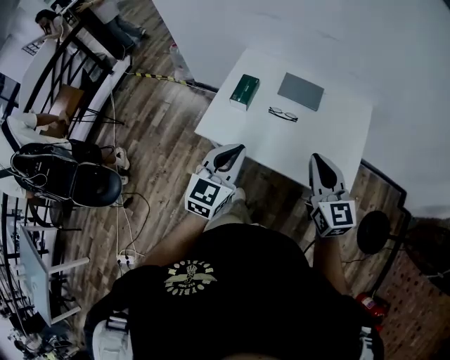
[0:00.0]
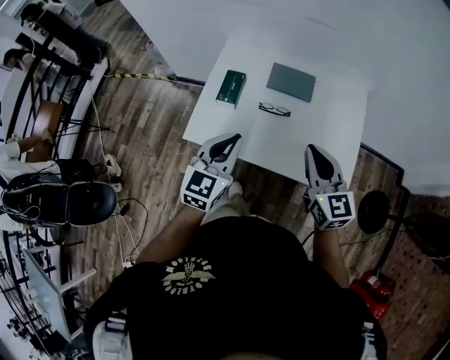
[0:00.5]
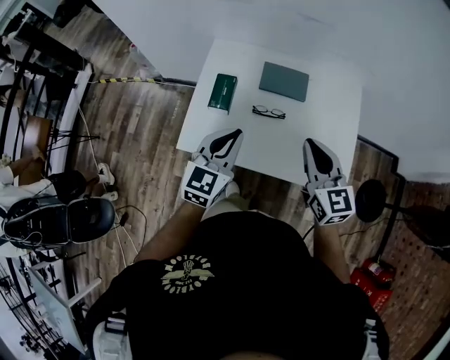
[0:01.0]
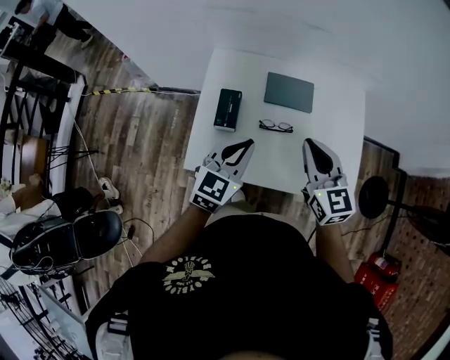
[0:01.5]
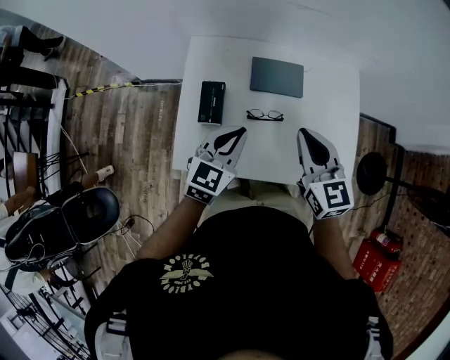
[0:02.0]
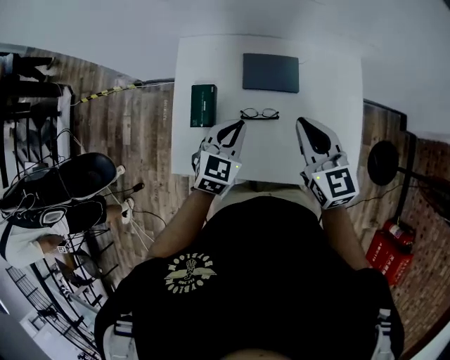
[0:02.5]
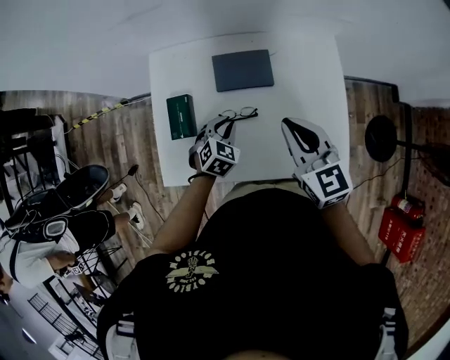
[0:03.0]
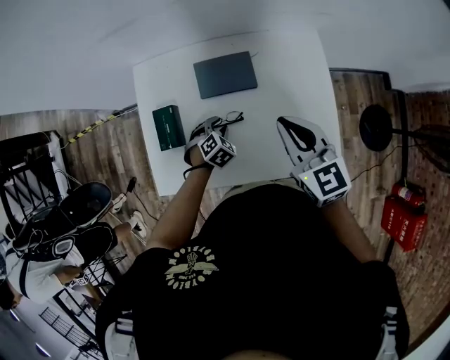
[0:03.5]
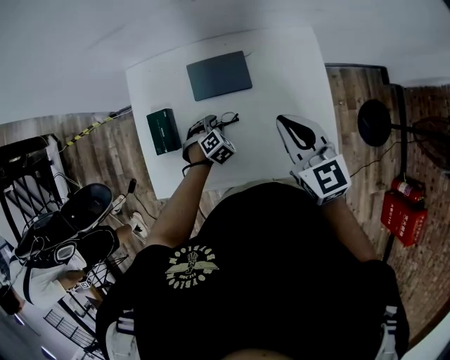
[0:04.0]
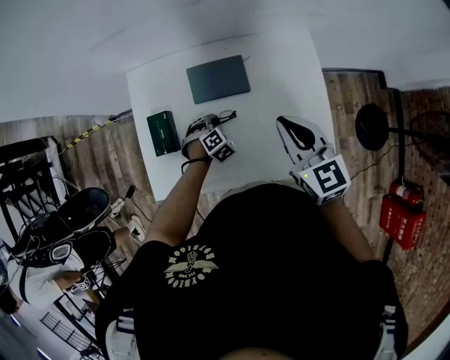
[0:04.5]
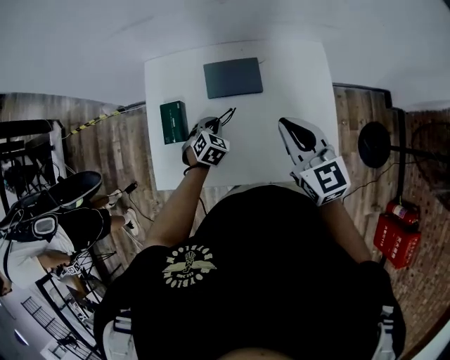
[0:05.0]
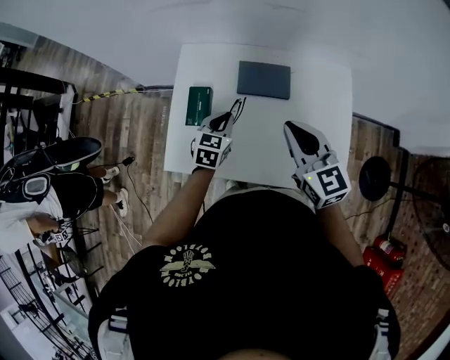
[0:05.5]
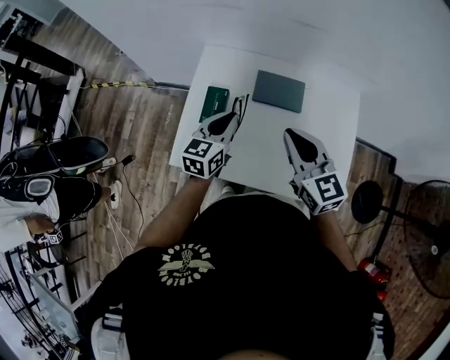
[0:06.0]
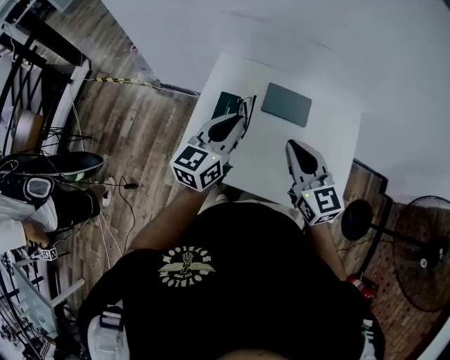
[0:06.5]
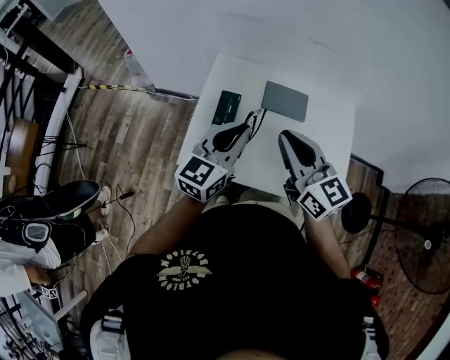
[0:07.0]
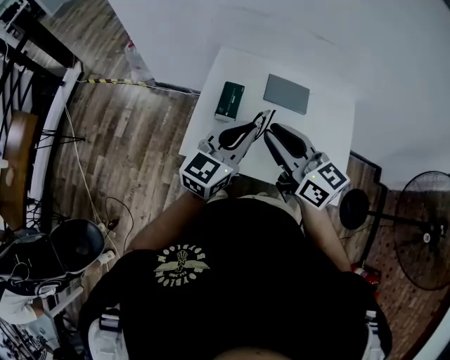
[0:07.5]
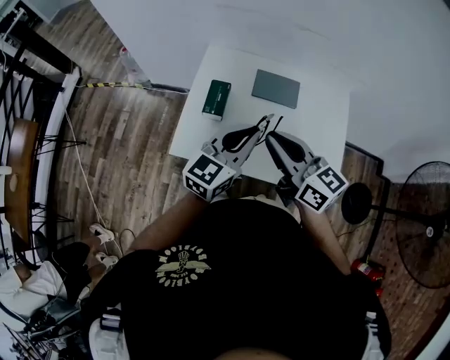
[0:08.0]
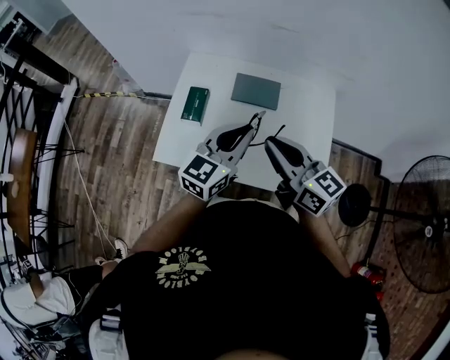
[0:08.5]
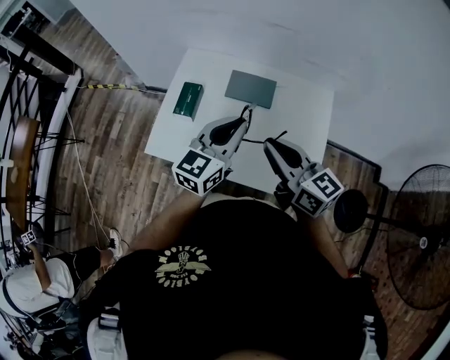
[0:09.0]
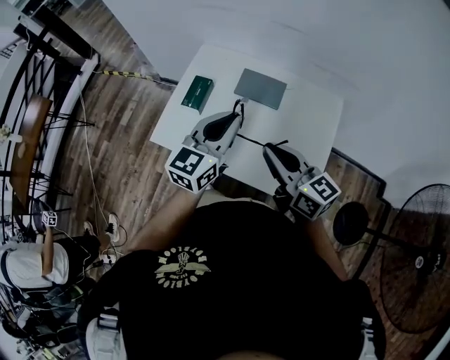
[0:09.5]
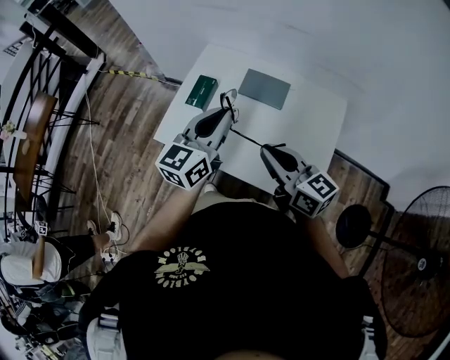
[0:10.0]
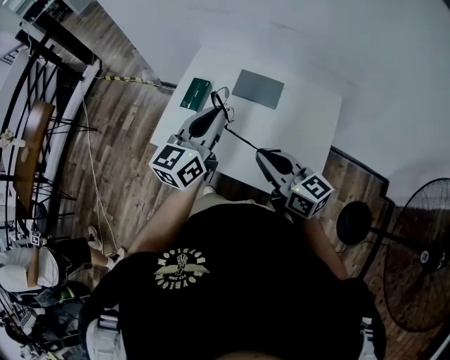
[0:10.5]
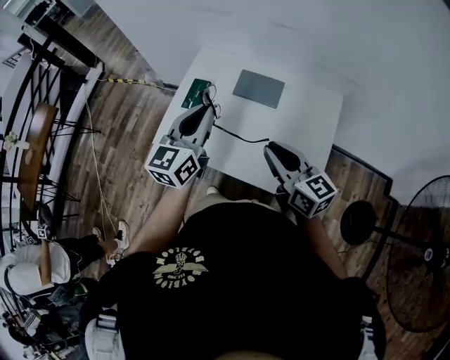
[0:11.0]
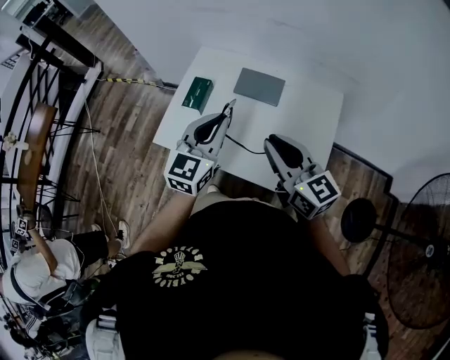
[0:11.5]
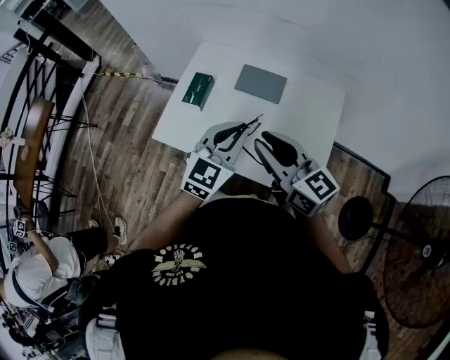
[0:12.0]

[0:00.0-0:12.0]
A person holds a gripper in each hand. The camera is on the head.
0:00.0 to 0:02.0: The two grippers go about 25 cm forward. The left gripper rotates roughly 20 degrees.
0:02.0 to 0:04.0: The right gripper moves to the right and forward, approximately 15 cm. Meanwhile the left gripper goes approximately 30 cm downward, tilts its fingers some 50 degrees downward, and opens its fingers.
0:04.0 to 0:06.0: The left gripper shifts some 30 cm upward and to the left, angles its fingers upward, by approximately 50 degrees, and closes. The right gripper moves to the left, some 15 cm.
0:06.0 to 0:08.0: The left gripper goes approximately 20 cm backward and upward. The right gripper is displaced backward, to the left and upward by some 15 cm, and changes its angle by about 20 degrees.
0:08.0 to 0:10.0: The left gripper is displaced to the right by some 10 cm, and turns by approximately 20 degrees. Meanwhile the right gripper heads to the right, covering about 15 cm.
0:10.0 to 0:12.0: The left gripper changes place by roughly 10 cm, and changes its angle by about 30 degrees.

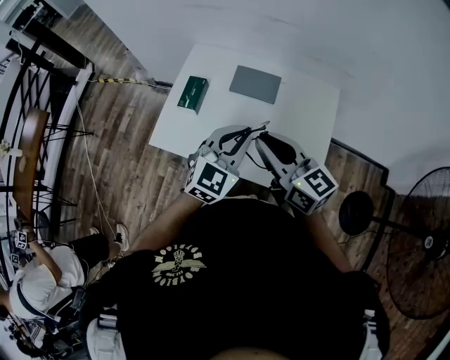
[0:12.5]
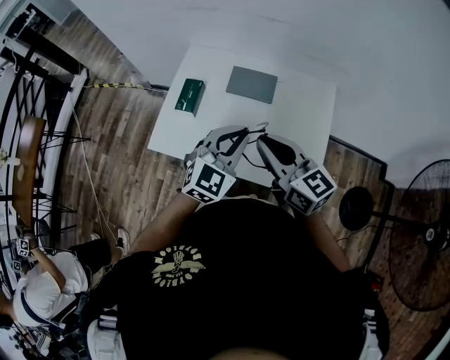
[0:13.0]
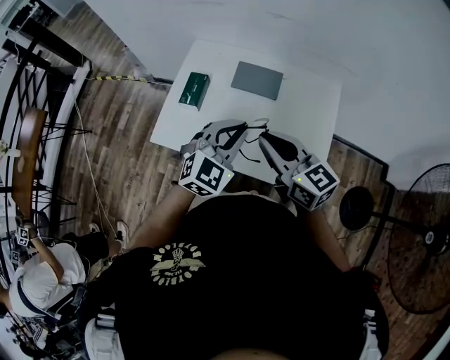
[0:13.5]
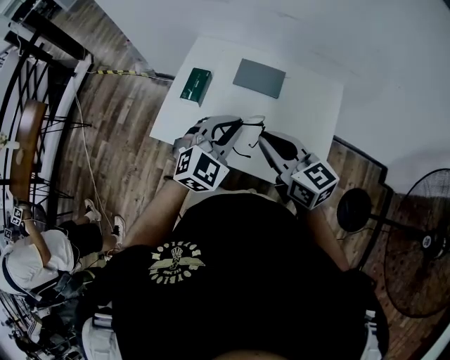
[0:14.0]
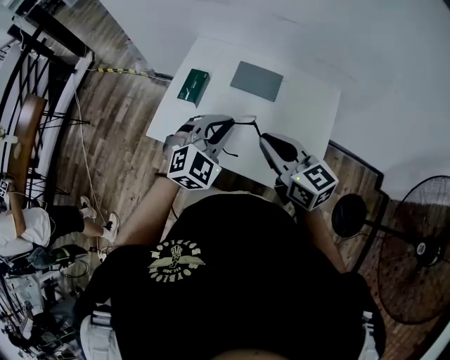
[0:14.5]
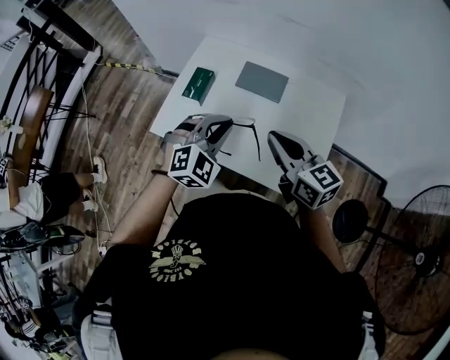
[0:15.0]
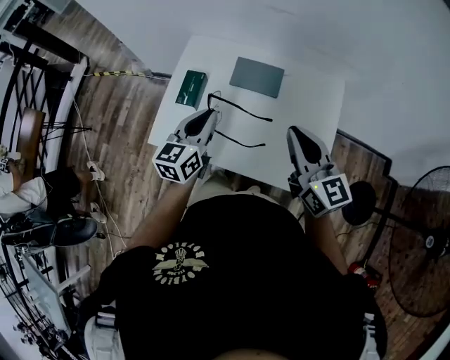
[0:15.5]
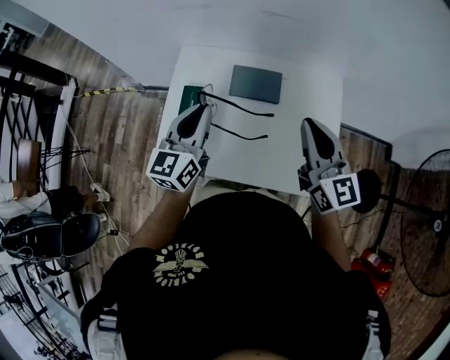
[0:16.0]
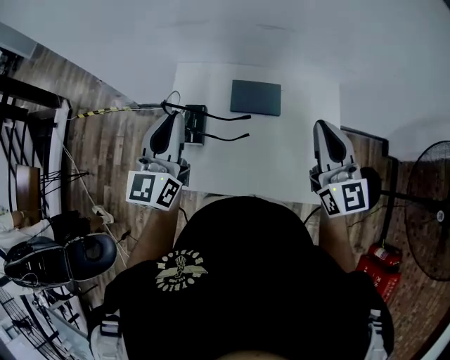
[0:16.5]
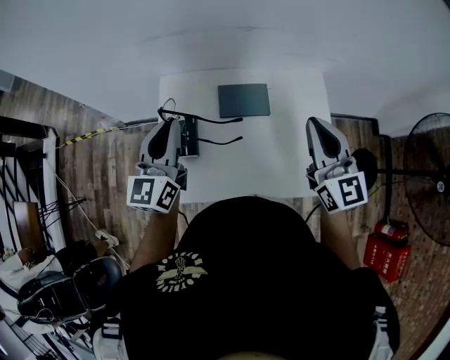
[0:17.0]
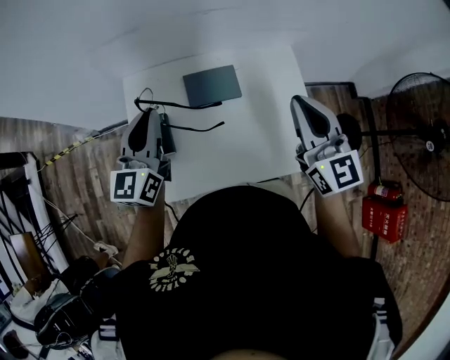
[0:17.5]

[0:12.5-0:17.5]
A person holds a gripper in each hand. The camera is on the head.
0:12.5 to 0:15.0: The left gripper changes place by roughly 5 cm, and turns by approximately 30 degrees.
0:15.0 to 0:17.5: The left gripper ends up roughly 30 cm from where it was, and twists about 50 degrees counterclockwise, seen from behind, while the right gripper moves roughly 20 cm, and rotates some 50 degrees.

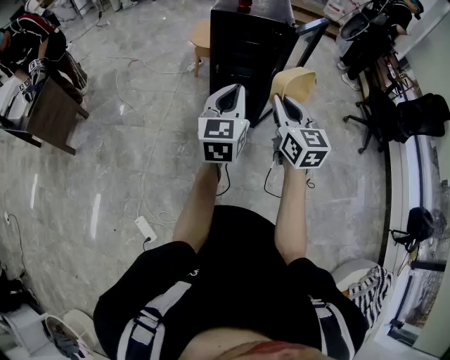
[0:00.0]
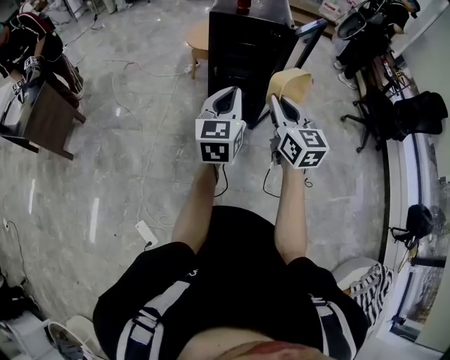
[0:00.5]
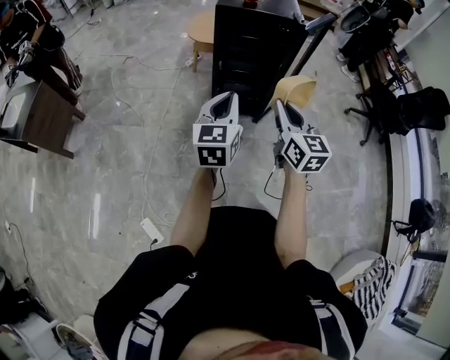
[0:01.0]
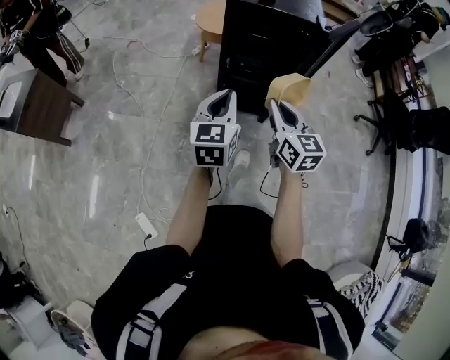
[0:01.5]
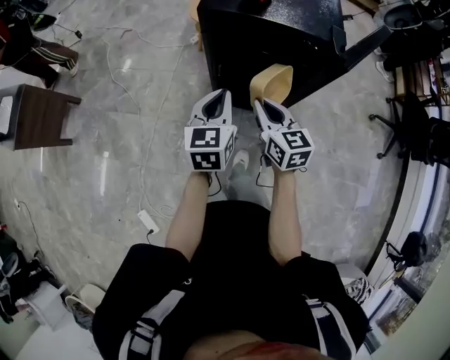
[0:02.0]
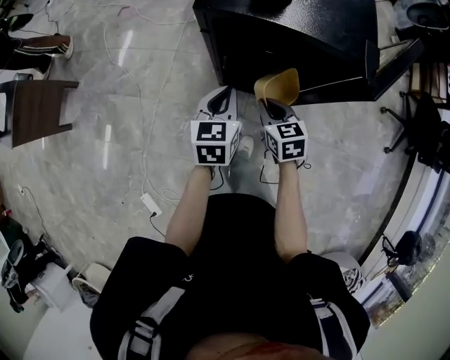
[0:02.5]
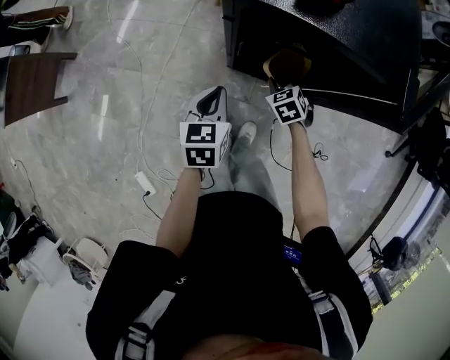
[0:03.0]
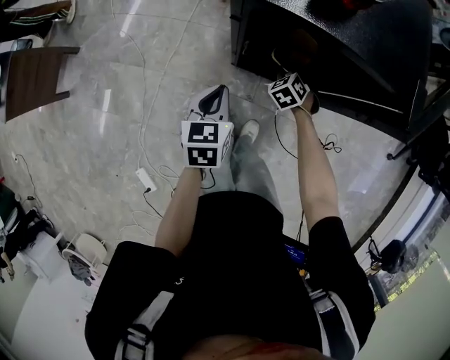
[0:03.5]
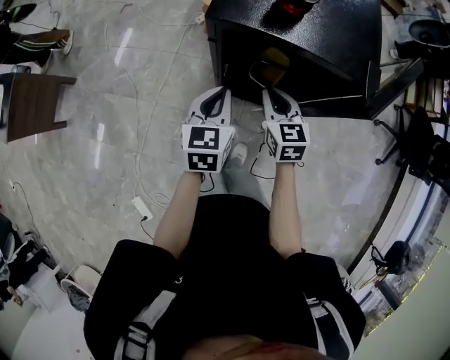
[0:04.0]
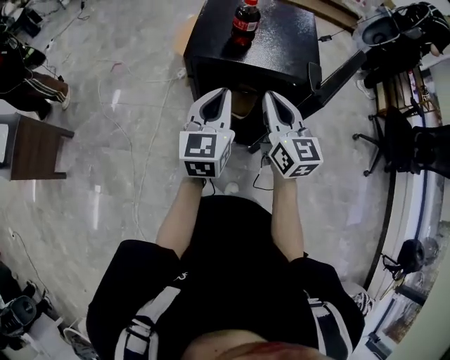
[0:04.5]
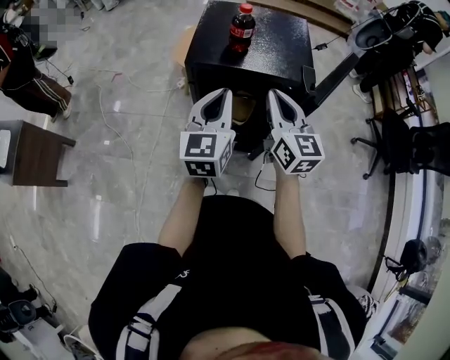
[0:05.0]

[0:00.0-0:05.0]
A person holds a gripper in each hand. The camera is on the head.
0:00.0 to 0:02.5: The pair of grippers is taken forward, some 40 cm. Both grippers move downward, roughly 25 cm. The right gripper tilts its fingers roughly 30 degrees downward, while the left gripper changes its angle by about 30 degrees.
0:02.5 to 0:05.0: The two grippers go about 25 cm upward. The right gripper tilts its fingers some 40 degrees upward, while the left gripper rotates about 30 degrees.

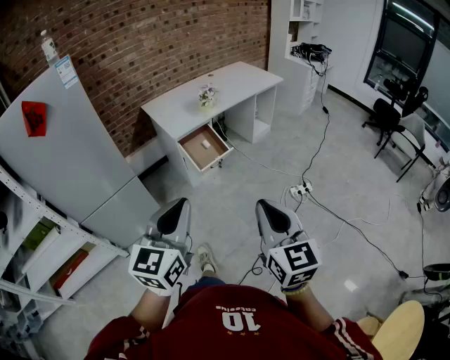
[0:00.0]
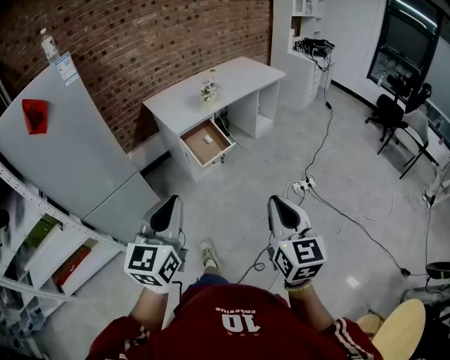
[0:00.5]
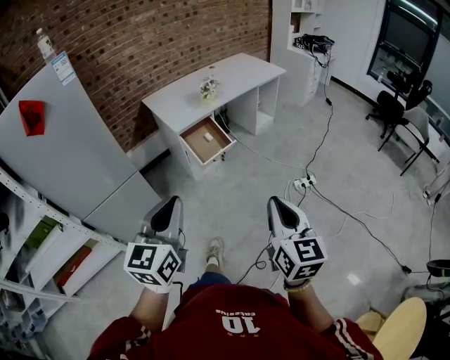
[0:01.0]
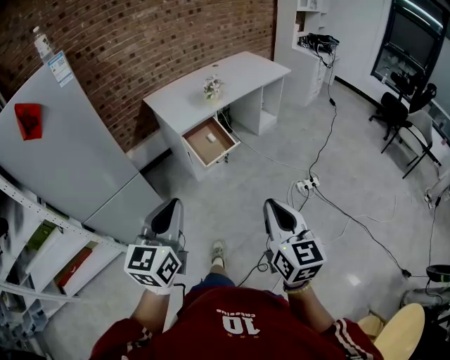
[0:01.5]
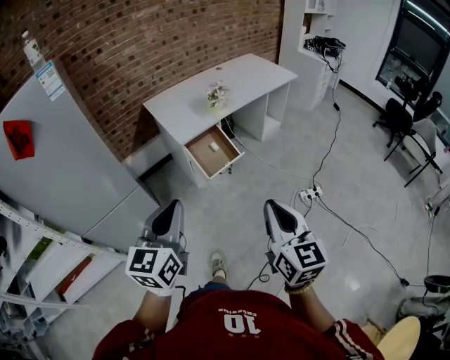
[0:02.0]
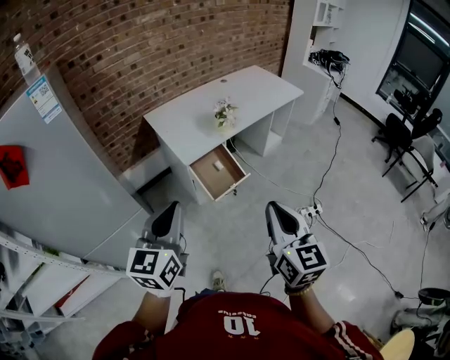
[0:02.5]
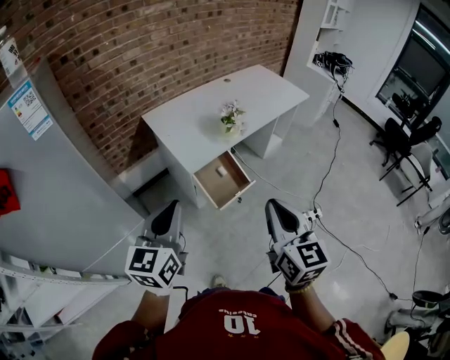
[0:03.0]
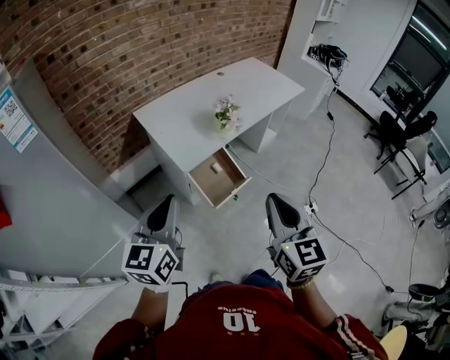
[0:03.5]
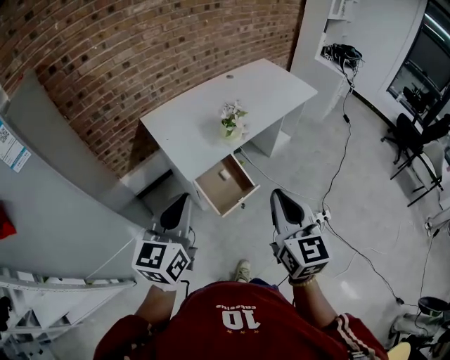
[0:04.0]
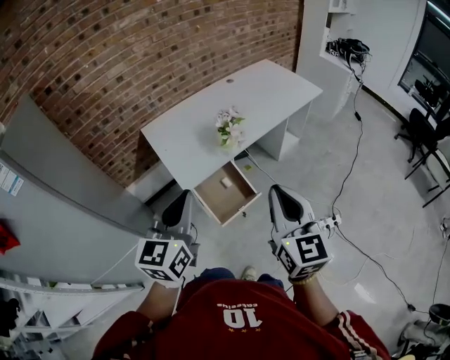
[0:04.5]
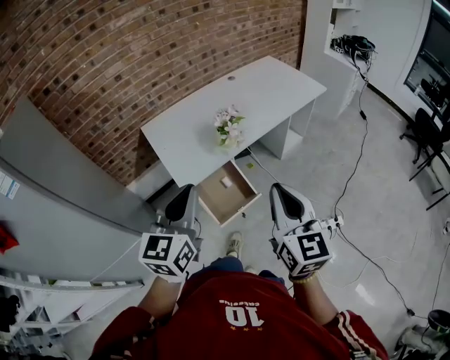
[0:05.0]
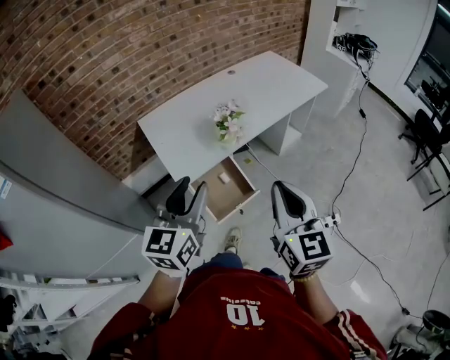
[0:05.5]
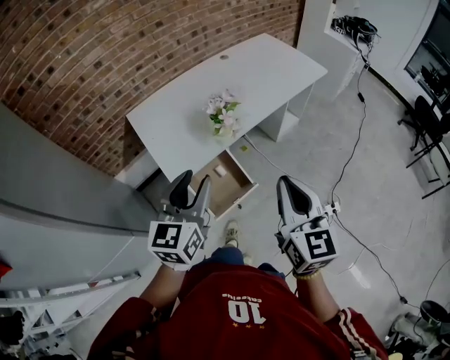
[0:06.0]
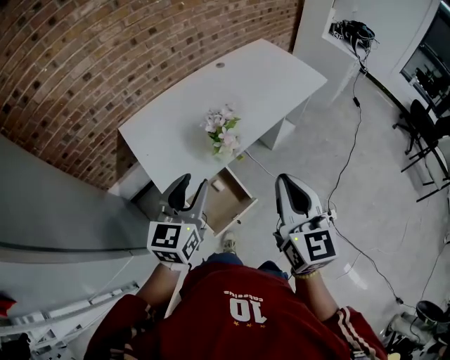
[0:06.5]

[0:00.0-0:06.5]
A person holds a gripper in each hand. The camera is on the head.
0:00.0 to 0:02.0: The right gripper shifts some 15 cm forward; the left gripper heads forward and to the left, covering some 15 cm.
0:02.0 to 0:04.5: The two grippers go roughly 35 cm forward.
0:04.5 to 0:06.5: The left gripper shifts roughly 20 cm forward and downward, and opens its fingers, while the right gripper is displaced forward by approximately 15 cm.
